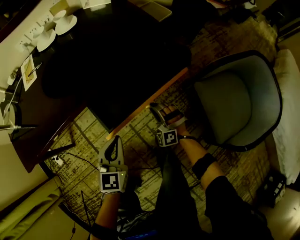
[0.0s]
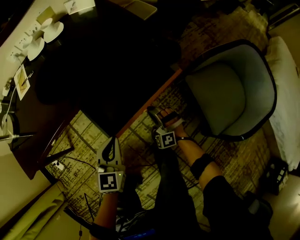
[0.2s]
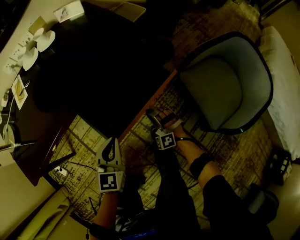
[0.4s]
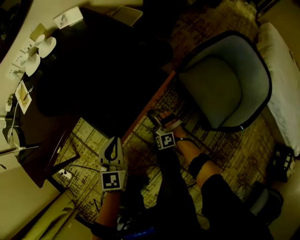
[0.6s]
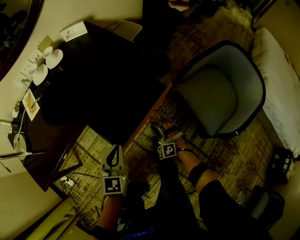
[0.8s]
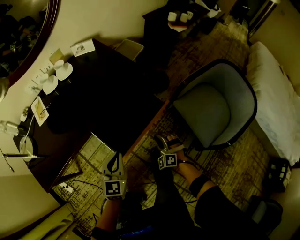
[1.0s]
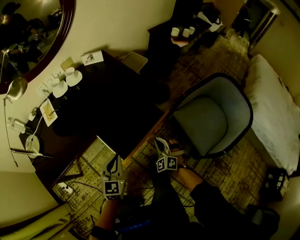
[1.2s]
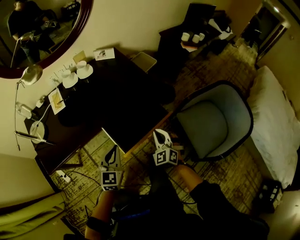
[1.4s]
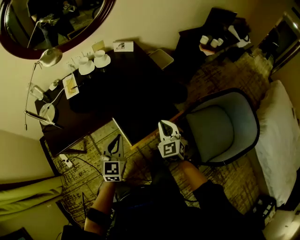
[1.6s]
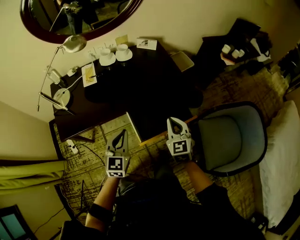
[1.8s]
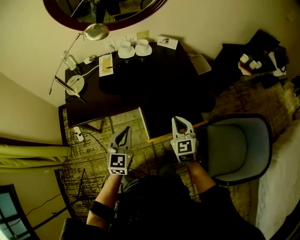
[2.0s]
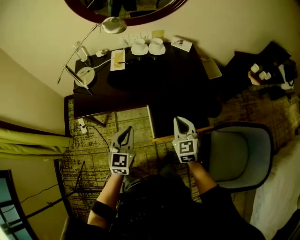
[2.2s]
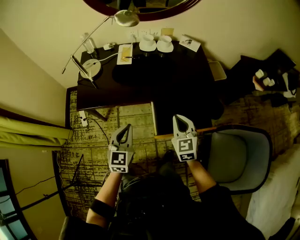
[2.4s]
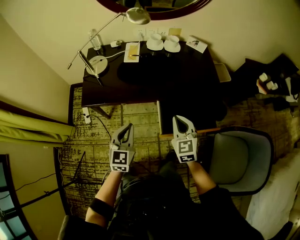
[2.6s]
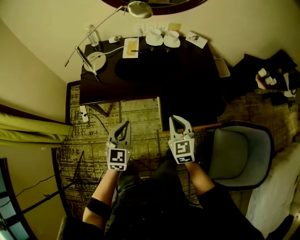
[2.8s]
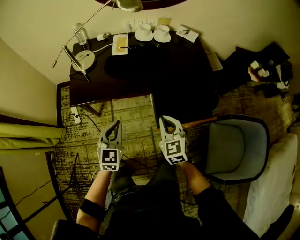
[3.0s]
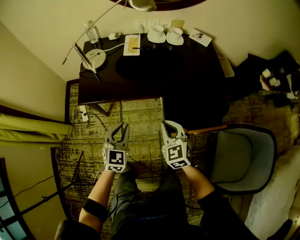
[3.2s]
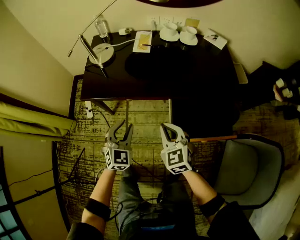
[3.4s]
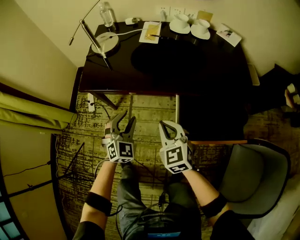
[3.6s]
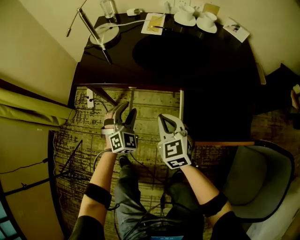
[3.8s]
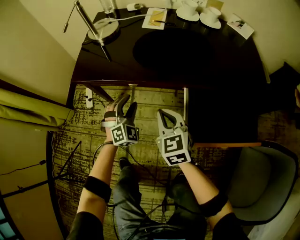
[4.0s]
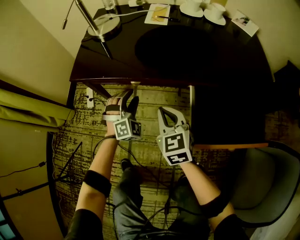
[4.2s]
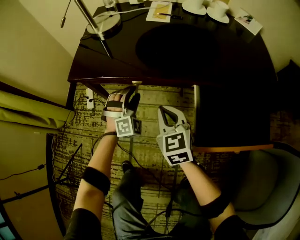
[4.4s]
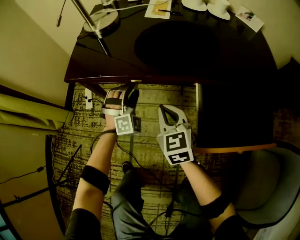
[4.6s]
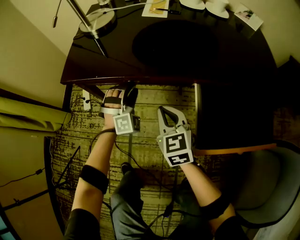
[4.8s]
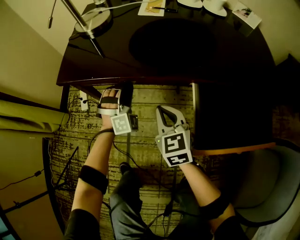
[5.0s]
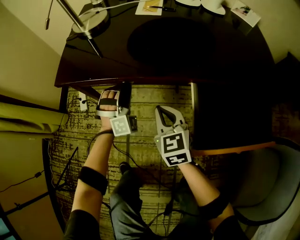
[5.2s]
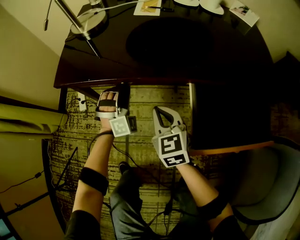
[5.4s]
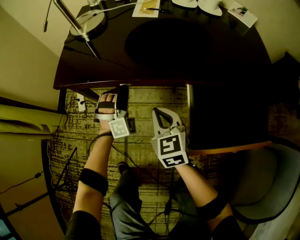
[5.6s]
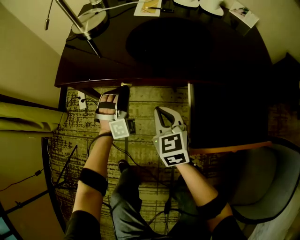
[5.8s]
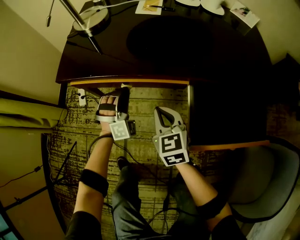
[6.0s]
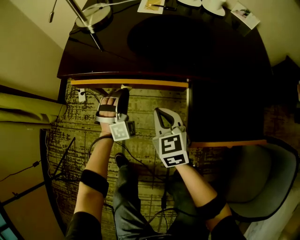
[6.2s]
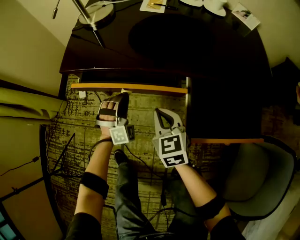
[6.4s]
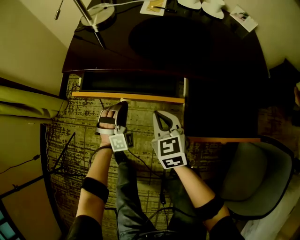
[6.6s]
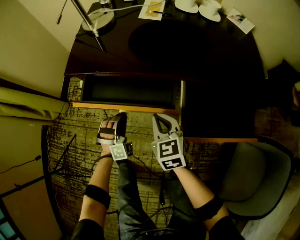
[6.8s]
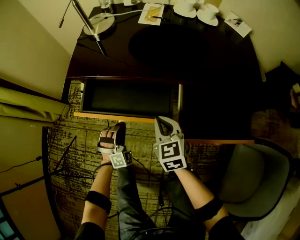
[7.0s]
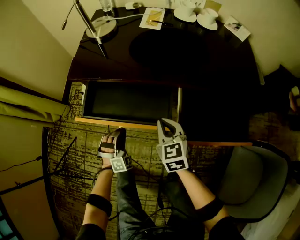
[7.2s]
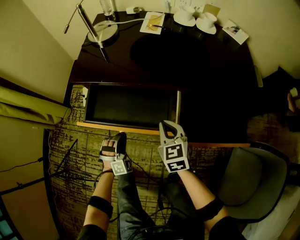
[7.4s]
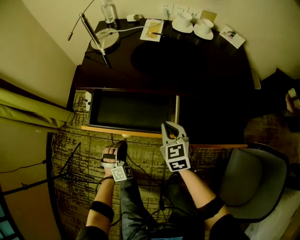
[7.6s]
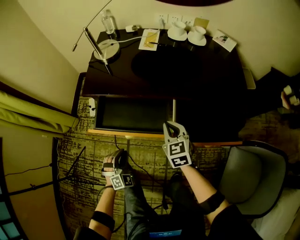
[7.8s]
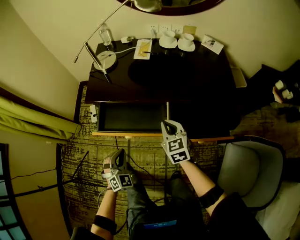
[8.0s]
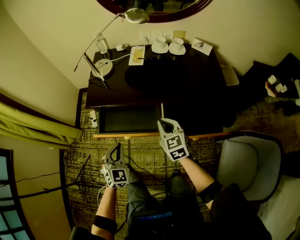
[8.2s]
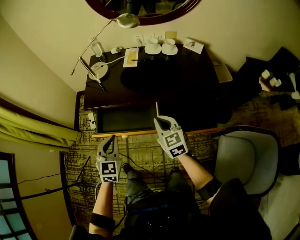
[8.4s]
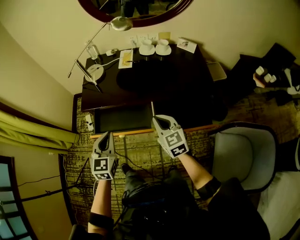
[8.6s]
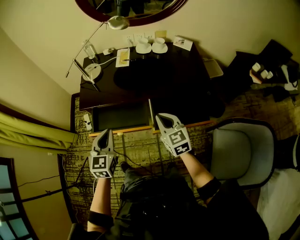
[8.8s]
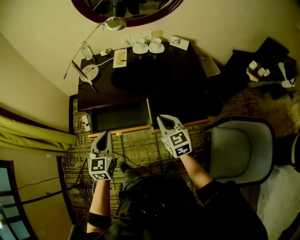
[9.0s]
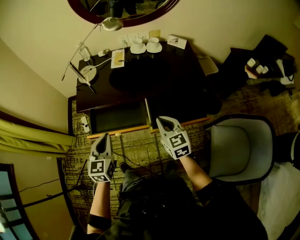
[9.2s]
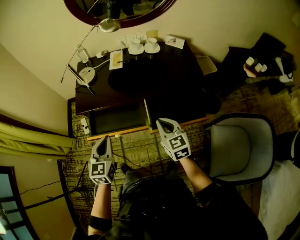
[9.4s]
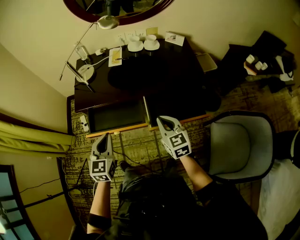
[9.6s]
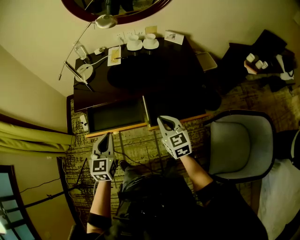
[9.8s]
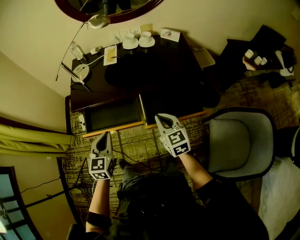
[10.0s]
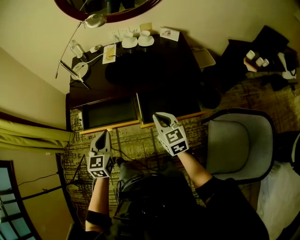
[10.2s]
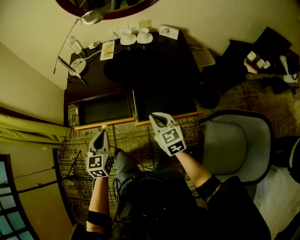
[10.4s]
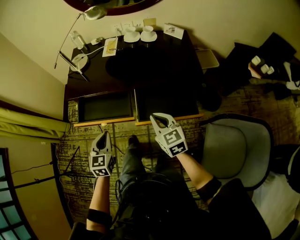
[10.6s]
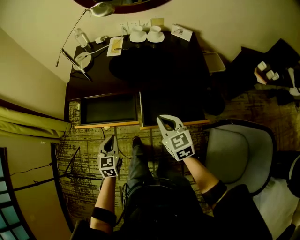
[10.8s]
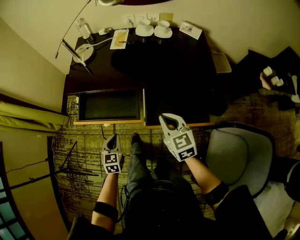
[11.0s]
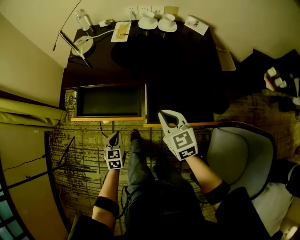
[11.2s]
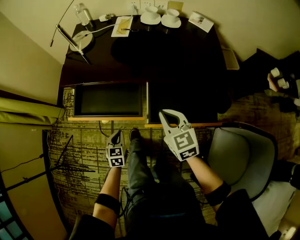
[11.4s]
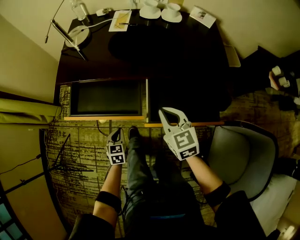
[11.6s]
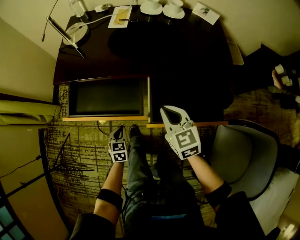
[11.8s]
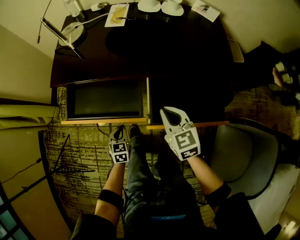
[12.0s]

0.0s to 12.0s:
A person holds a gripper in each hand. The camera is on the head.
0.0s to 1.6s: The left gripper goes about 25 cm upward, while the right gripper heads upward, covering some 35 cm, and rolls clockwise, seen from behind, by about 50 degrees.
1.6s to 3.0s: The right gripper shifts by some 25 cm, and rotates roughly 20 degrees. The left gripper moves about 20 cm, and turns by approximately 20 degrees.
3.0s to 4.4s: The left gripper travels downward and forward by about 35 cm, rotates around the line of its fingers by approximately 50 degrees, clockwise from behind, and opens up, while the right gripper moves downward, to the left and forward, roughly 30 cm.
4.4s to 6.0s: The left gripper closes its fingers.
6.0s to 7.6s: The right gripper goes about 10 cm upward and backward. The left gripper heads backward, covering about 25 cm.
7.6s to 9.0s: The right gripper is displaced upward and backward by approximately 25 cm; the left gripper moves upward, some 40 cm, and twists about 60 degrees counterclockwise, seen from behind.
9.0s to 10.4s: The left gripper is displaced to the right and downward by approximately 10 cm. Meanwhile the right gripper shifts about 10 cm to the right.
10.4s to 12.0s: The right gripper moves downward and forward, about 20 cm. Meanwhile the left gripper shifts some 35 cm downward.

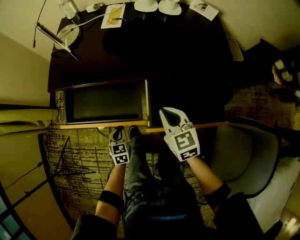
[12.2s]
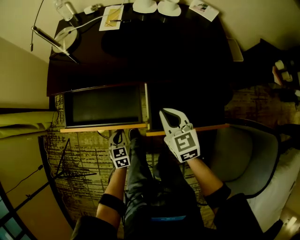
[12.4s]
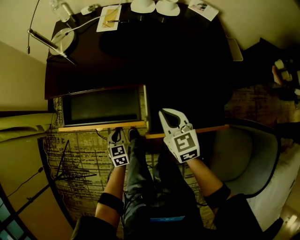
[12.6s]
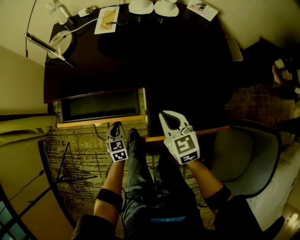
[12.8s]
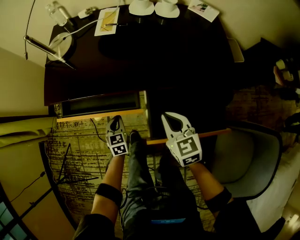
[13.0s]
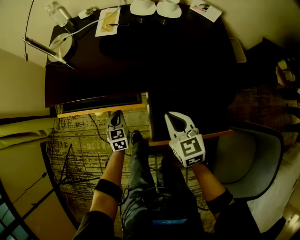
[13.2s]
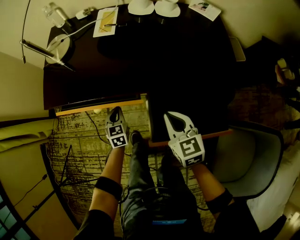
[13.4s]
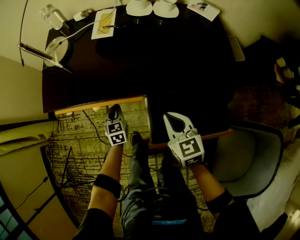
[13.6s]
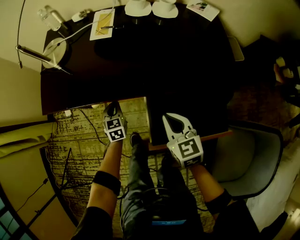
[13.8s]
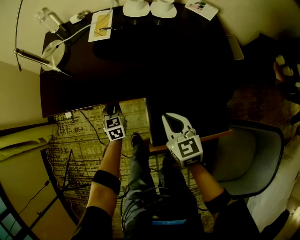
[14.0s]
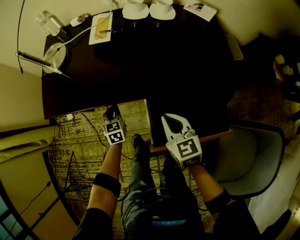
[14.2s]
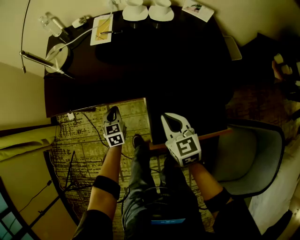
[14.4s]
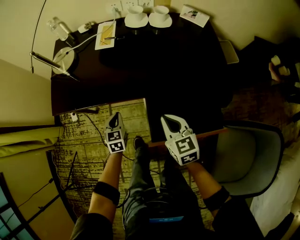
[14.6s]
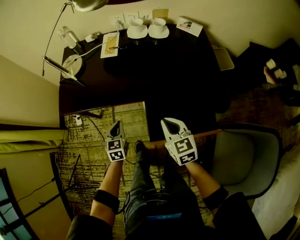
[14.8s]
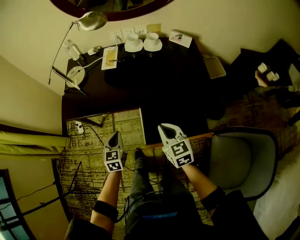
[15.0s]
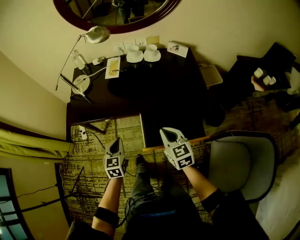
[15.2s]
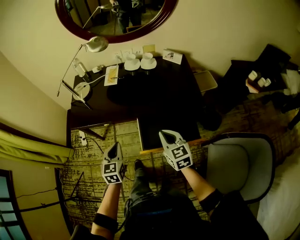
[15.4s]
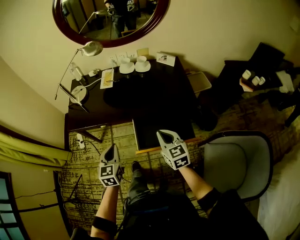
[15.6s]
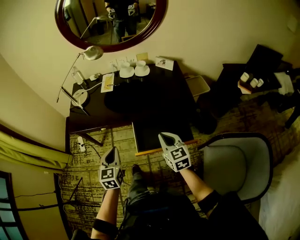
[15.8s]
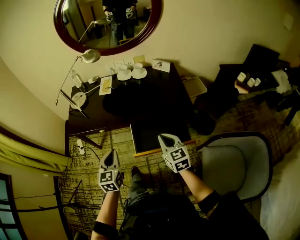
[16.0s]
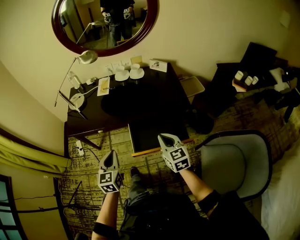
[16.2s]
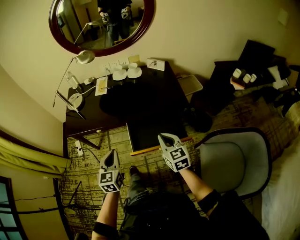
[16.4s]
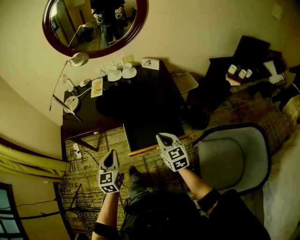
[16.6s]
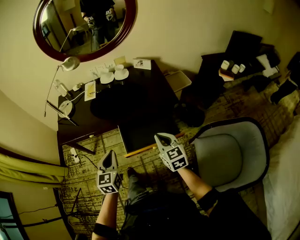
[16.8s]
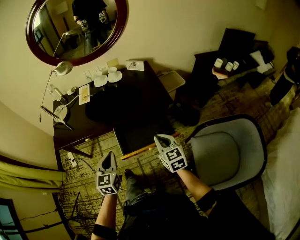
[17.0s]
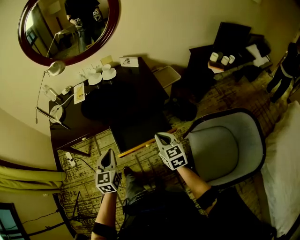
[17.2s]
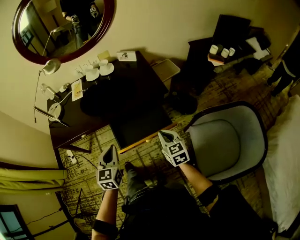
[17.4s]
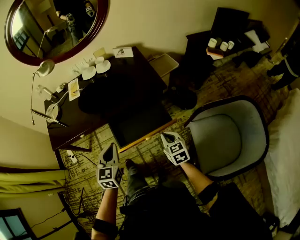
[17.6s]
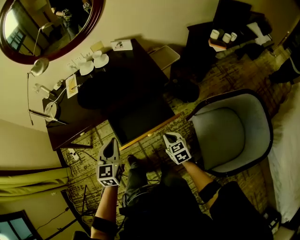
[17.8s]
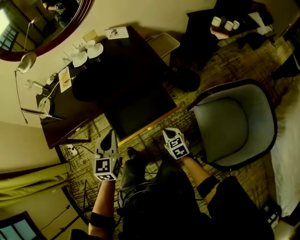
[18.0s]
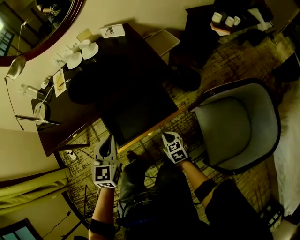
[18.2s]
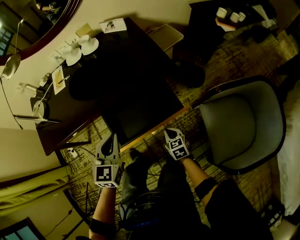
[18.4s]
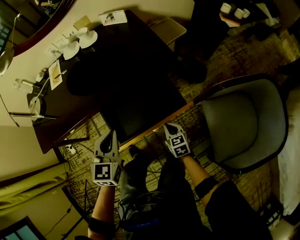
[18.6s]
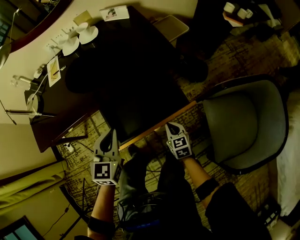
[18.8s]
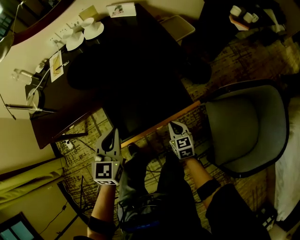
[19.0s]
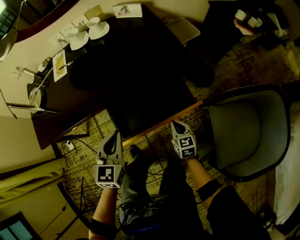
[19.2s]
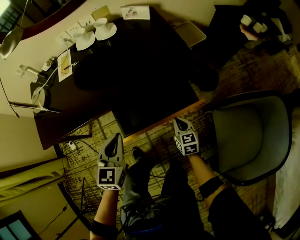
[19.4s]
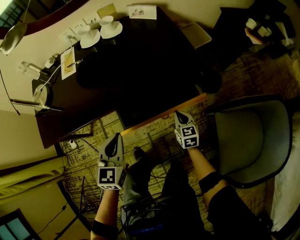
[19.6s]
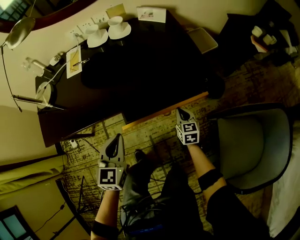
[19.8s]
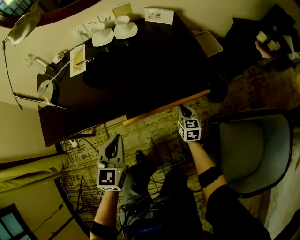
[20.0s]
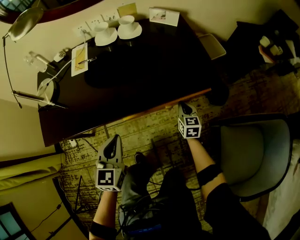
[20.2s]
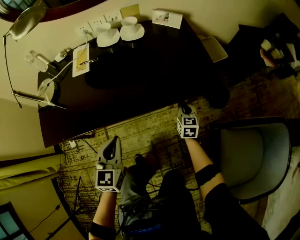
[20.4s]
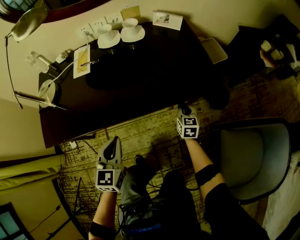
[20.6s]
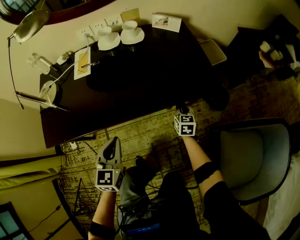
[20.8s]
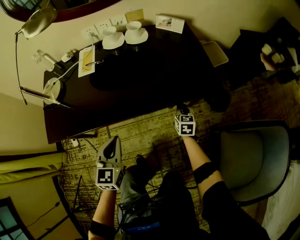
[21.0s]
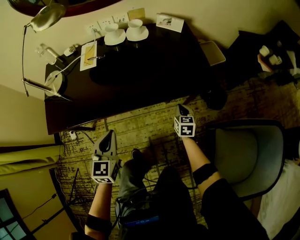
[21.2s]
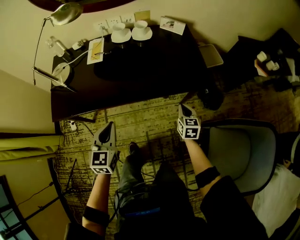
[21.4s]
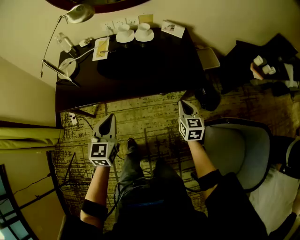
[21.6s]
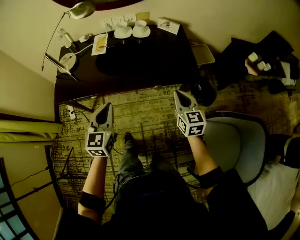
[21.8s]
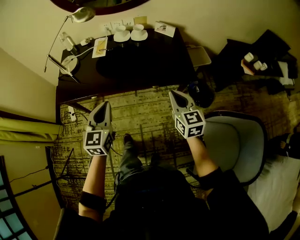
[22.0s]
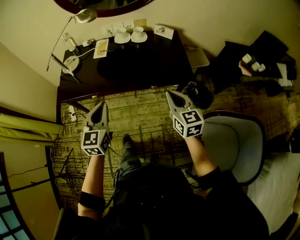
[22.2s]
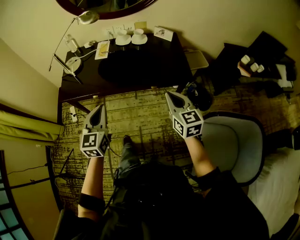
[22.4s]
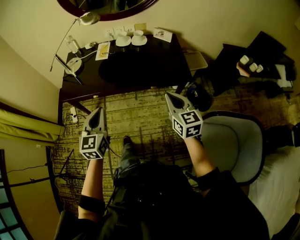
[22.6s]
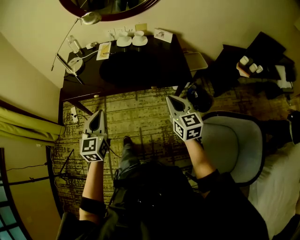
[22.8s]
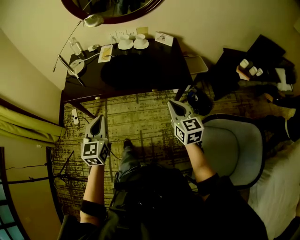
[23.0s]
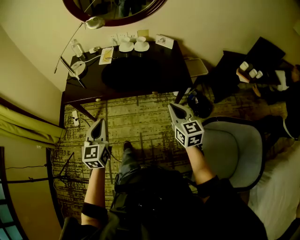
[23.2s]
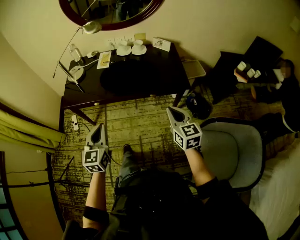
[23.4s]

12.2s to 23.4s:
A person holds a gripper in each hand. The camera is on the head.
12.2s to 13.8s: The right gripper is displaced forward by roughly 5 cm. The left gripper moves forward, roughly 20 cm.
13.8s to 15.4s: The left gripper goes some 40 cm upward and backward, while the right gripper is displaced upward and backward by about 20 cm.
15.4s to 17.0s: The left gripper shifts roughly 15 cm to the right, backward and upward. Meanwhile the right gripper travels to the right and backward by approximately 15 cm.
17.0s to 18.6s: The right gripper is displaced downward by approximately 35 cm, and rotates approximately 20 degrees; the left gripper is displaced downward, forward and to the right by approximately 20 cm.
18.6s to 20.2s: The left gripper shifts some 15 cm to the left. Meanwhile the right gripper travels forward by roughly 25 cm.
20.2s to 21.8s: The left gripper shifts roughly 20 cm upward and backward, while the right gripper is displaced upward and backward by some 35 cm.
21.8s to 23.4s: The left gripper heads backward, covering some 15 cm, while the right gripper shifts roughly 15 cm backward and upward.
